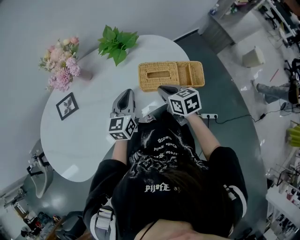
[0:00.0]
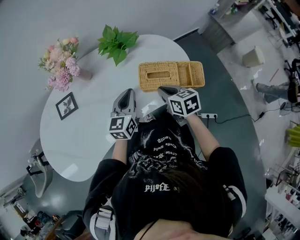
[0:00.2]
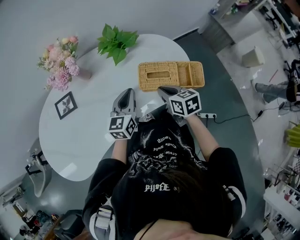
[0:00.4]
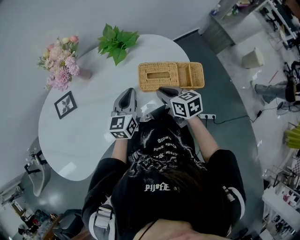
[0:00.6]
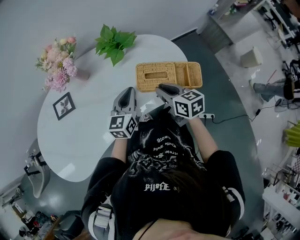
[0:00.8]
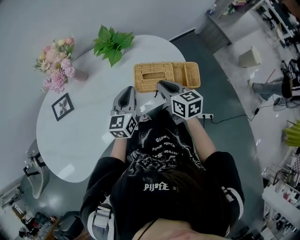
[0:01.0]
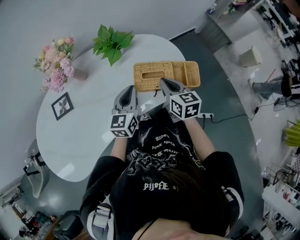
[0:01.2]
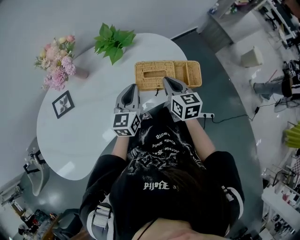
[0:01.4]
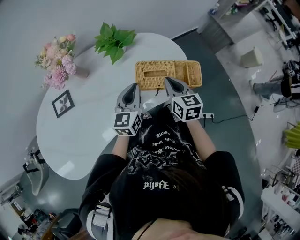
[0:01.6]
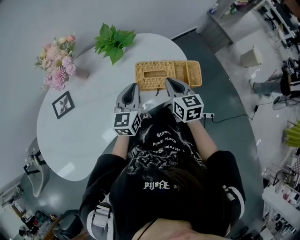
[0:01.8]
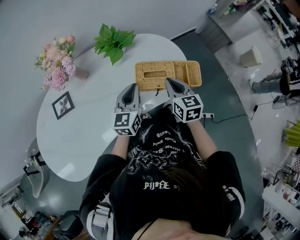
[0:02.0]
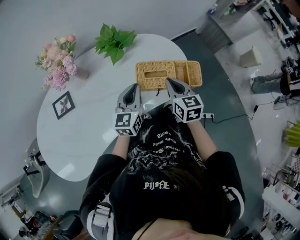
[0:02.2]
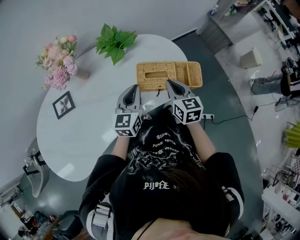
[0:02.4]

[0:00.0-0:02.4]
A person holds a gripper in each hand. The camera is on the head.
0:00.0 to 0:01.2: The right gripper shifts by some 5 cm.
0:01.2 to 0:02.4: The grippers move only a little.

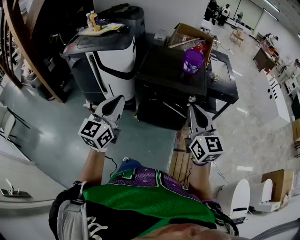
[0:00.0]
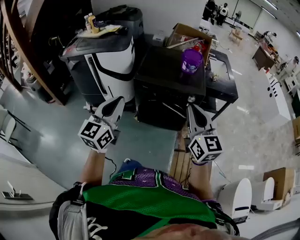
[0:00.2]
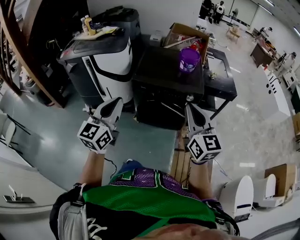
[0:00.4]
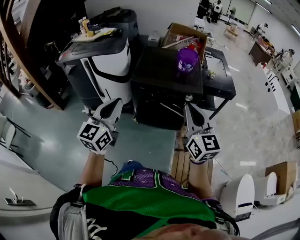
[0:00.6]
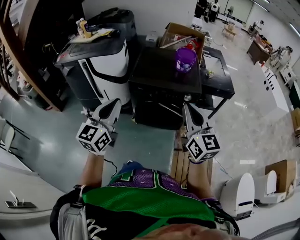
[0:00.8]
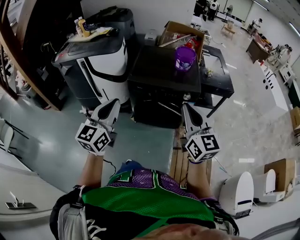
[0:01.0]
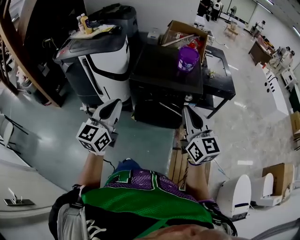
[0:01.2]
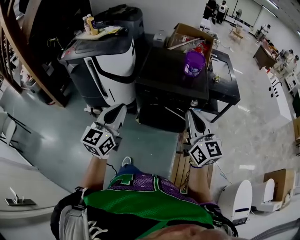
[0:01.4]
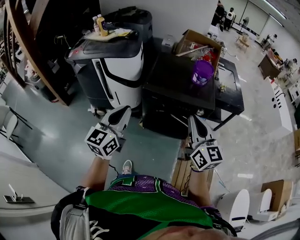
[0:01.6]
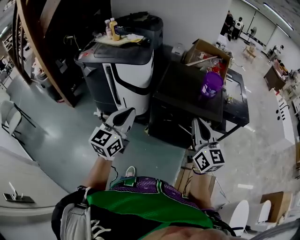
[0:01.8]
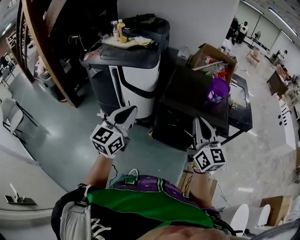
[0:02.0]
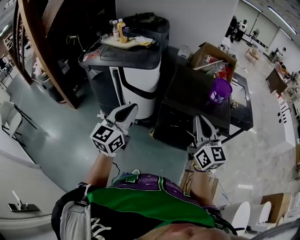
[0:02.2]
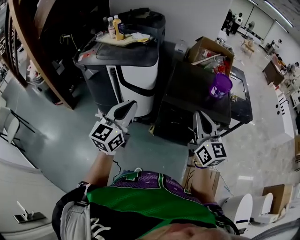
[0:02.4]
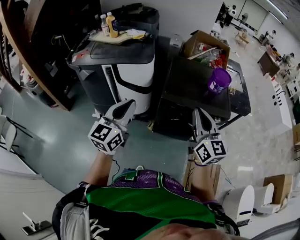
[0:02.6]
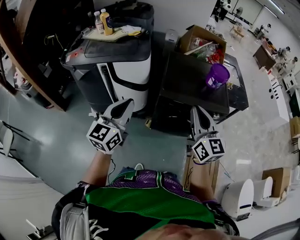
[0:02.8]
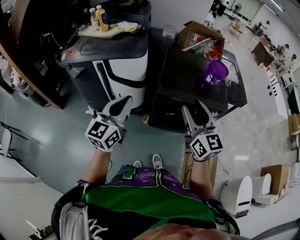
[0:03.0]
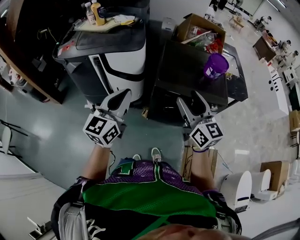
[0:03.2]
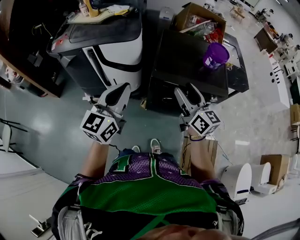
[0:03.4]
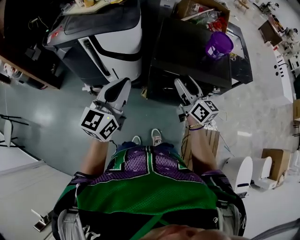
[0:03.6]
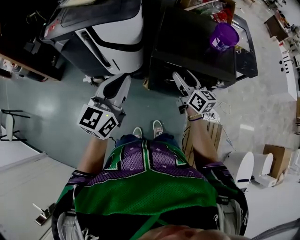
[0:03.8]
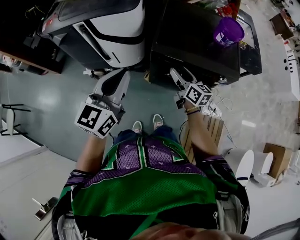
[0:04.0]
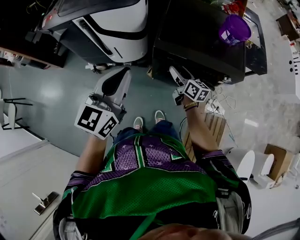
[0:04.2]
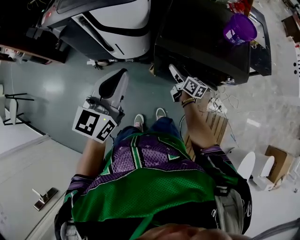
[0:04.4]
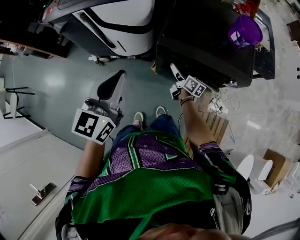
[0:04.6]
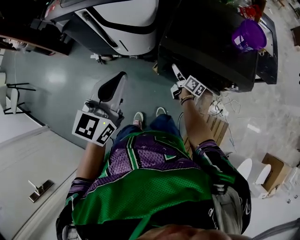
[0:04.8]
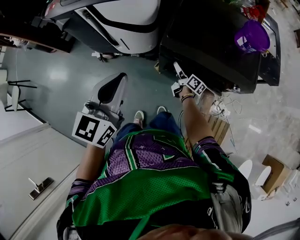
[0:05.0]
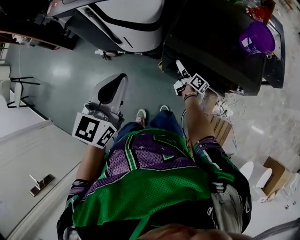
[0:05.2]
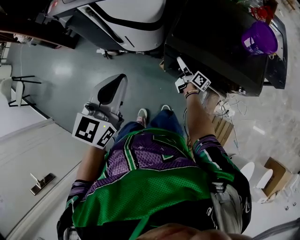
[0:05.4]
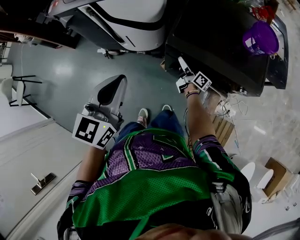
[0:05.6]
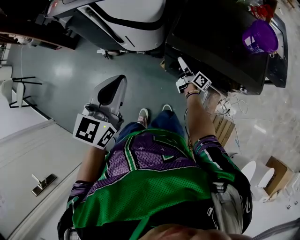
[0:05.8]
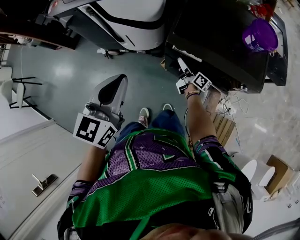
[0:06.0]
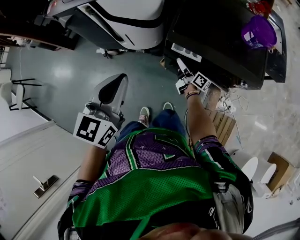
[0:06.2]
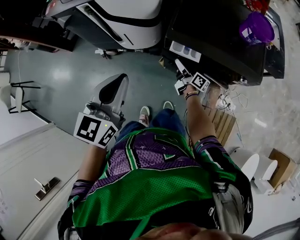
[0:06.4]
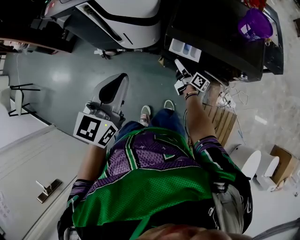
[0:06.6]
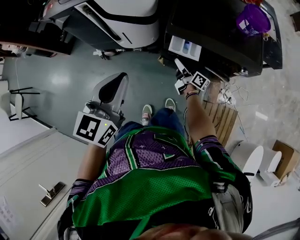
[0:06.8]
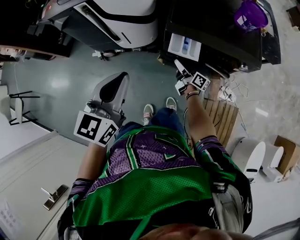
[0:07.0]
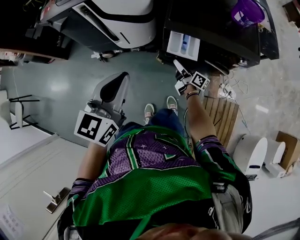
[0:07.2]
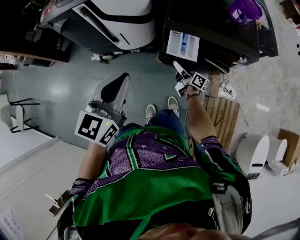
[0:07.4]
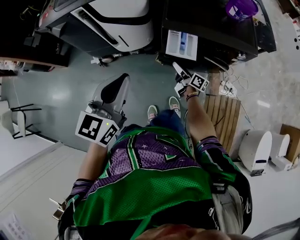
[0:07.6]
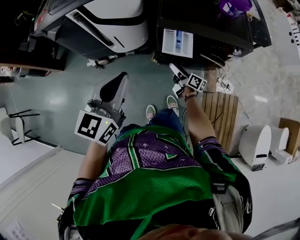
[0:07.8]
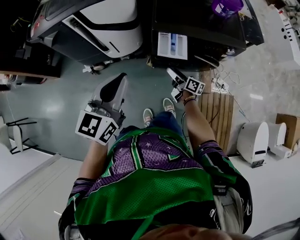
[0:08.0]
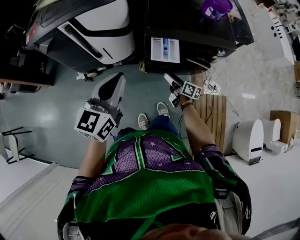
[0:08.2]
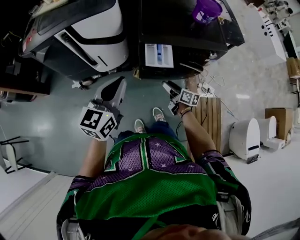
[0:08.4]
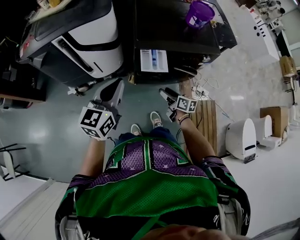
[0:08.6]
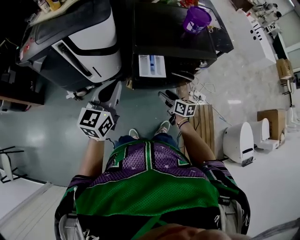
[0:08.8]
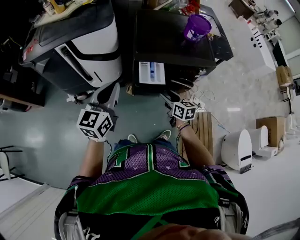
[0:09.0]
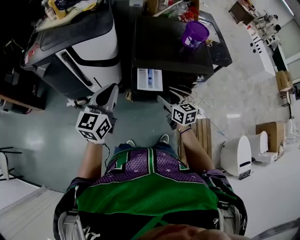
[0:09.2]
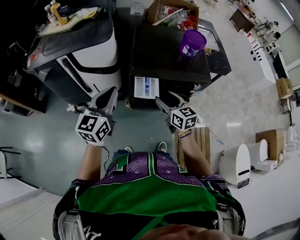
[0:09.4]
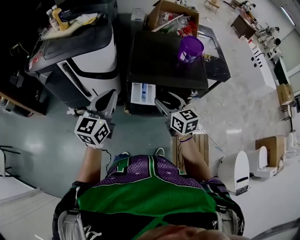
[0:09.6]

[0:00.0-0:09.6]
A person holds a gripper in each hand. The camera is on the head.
0:00.0 to 0:01.6: The right gripper moves forward and to the left, roughly 10 cm. The left gripper is displaced forward by about 5 cm.
0:01.6 to 0:03.2: The right gripper is displaced to the left and forward by about 25 cm, and opens up. Meanwhile the left gripper goes approximately 20 cm forward and to the left.
0:03.2 to 0:04.8: The right gripper heads downward and forward, covering some 50 cm, and twists about 50 degrees clockwise, seen from behind; the left gripper heads downward and to the right, covering roughly 10 cm.
0:04.8 to 0:06.4: There are only small adjustments of the grippers.
0:06.4 to 0:08.0: The right gripper travels backward by about 10 cm. The left gripper moves backward, approximately 5 cm.
0:08.0 to 0:09.6: The right gripper moves upward, roughly 30 cm, and rolls counterclockwise, seen from behind, by about 50 degrees. The left gripper goes about 10 cm forward, upward and to the right.

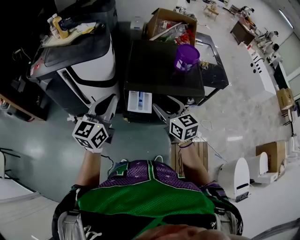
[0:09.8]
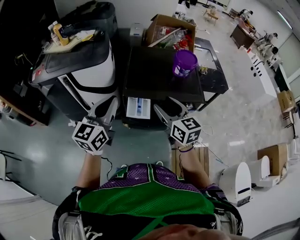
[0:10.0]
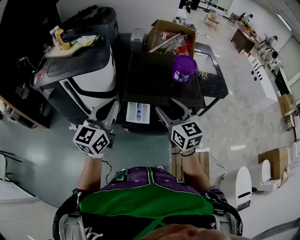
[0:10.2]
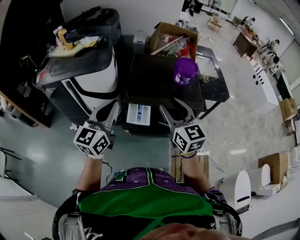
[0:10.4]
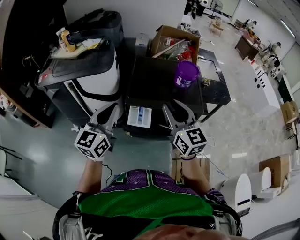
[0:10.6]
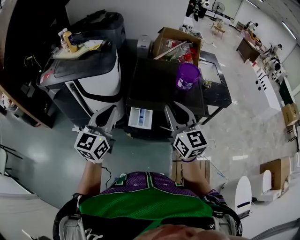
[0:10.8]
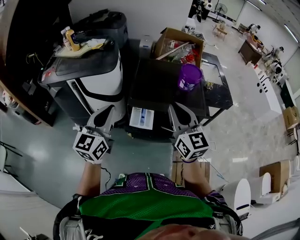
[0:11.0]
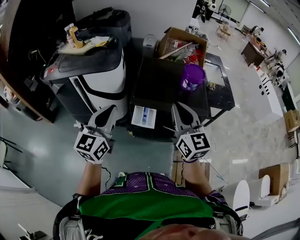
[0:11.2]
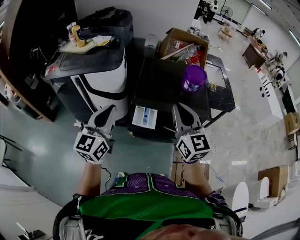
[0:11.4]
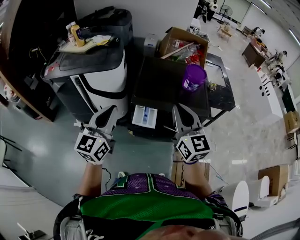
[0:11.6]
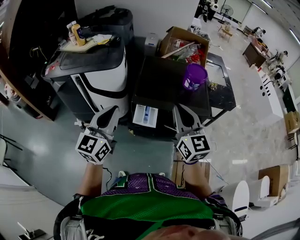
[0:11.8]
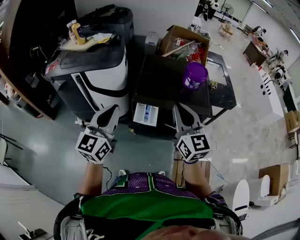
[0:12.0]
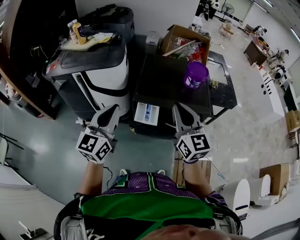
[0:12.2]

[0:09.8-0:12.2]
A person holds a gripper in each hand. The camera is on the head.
0:09.8 to 0:11.0: The right gripper goes about 15 cm upward, and closes. Meanwhile the left gripper changes place by approximately 5 cm.
0:11.0 to 0:12.2: There are only small adjustments of the grippers.

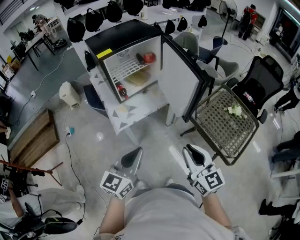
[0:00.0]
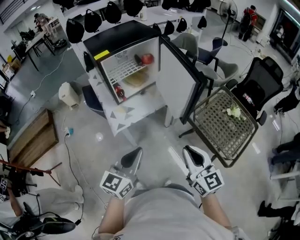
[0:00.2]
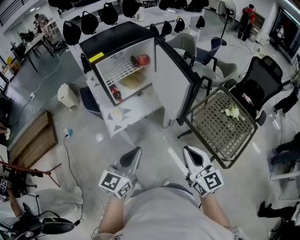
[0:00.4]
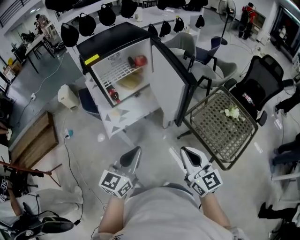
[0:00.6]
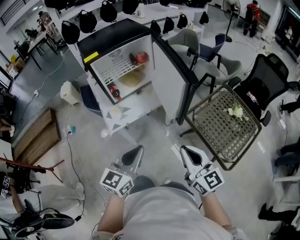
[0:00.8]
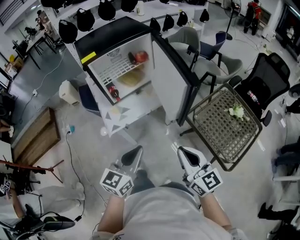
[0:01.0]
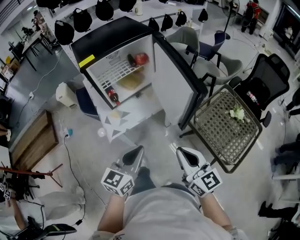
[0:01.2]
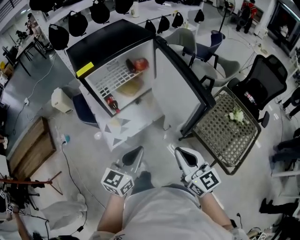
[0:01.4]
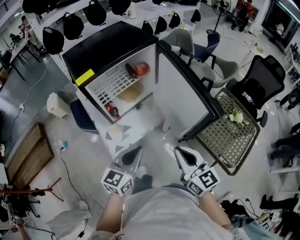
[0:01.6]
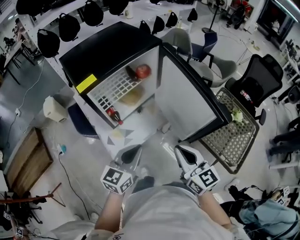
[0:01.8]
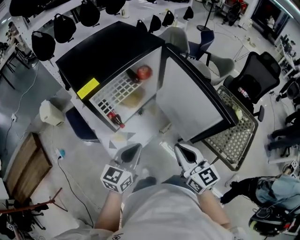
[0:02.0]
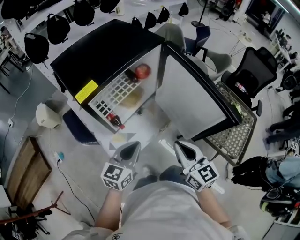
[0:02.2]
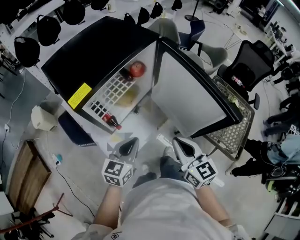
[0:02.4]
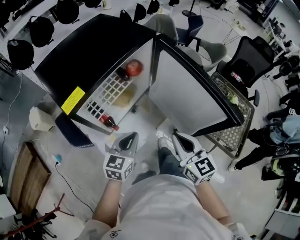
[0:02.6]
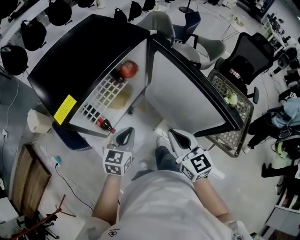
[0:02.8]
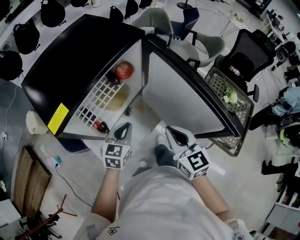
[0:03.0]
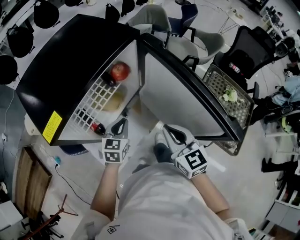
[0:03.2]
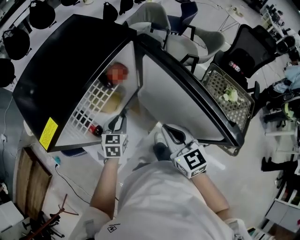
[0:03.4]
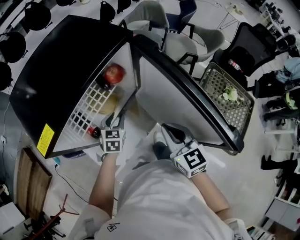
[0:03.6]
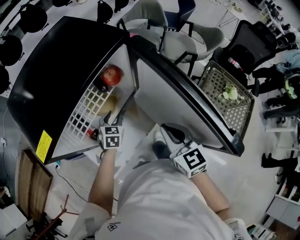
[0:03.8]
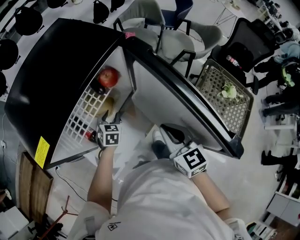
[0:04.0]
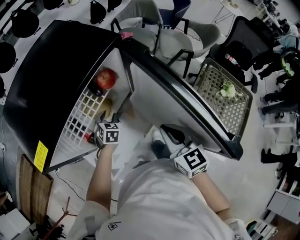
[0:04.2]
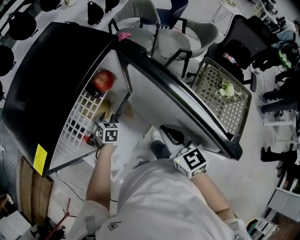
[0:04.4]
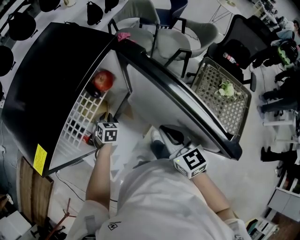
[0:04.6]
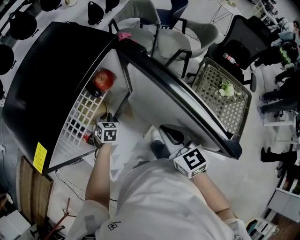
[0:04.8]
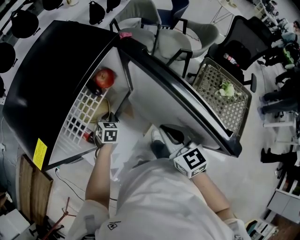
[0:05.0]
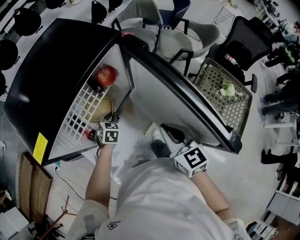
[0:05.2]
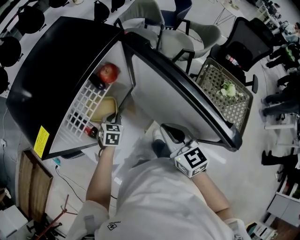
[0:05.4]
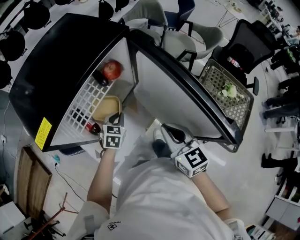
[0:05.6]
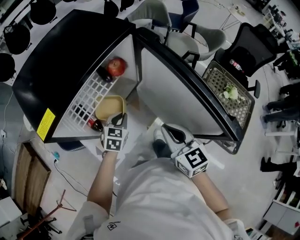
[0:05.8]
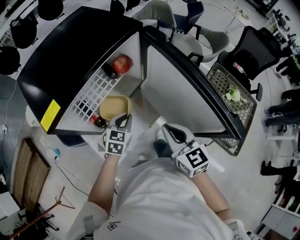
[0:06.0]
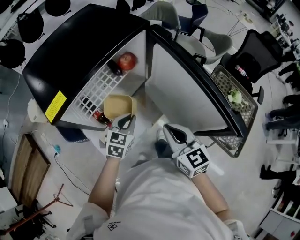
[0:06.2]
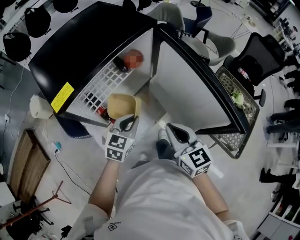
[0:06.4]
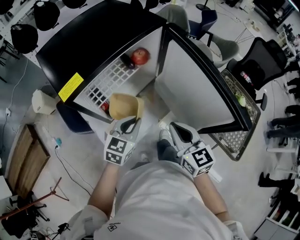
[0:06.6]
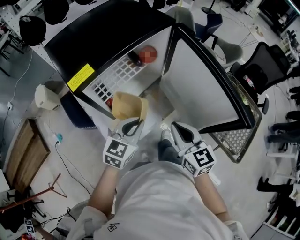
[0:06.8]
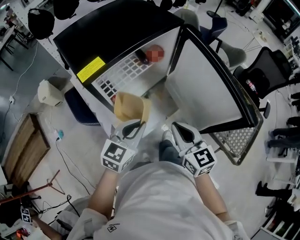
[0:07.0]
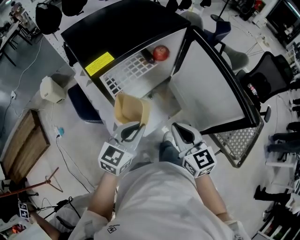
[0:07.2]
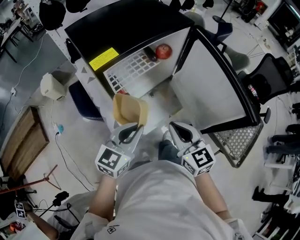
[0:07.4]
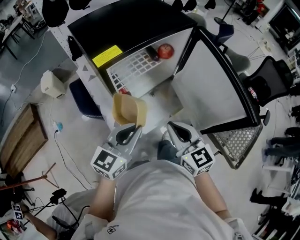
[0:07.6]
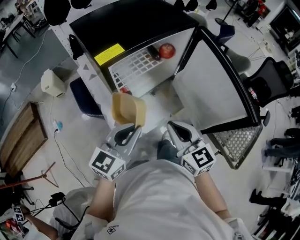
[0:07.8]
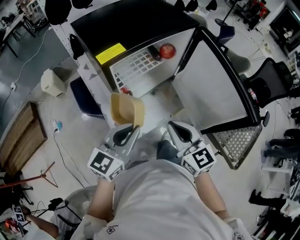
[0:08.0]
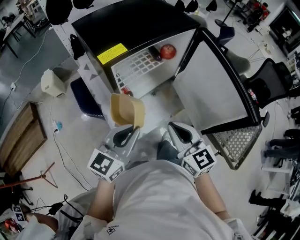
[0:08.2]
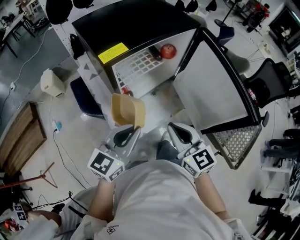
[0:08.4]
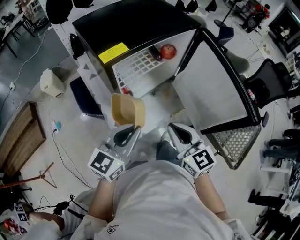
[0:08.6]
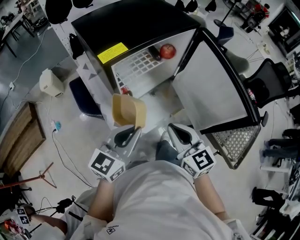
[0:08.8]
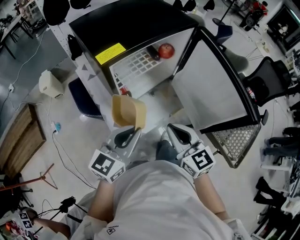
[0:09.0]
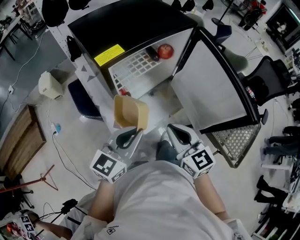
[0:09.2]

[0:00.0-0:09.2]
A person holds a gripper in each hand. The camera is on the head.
0:00.0 to 0:01.6: Both grippers travel together forward, some 20 cm.
0:01.6 to 0:03.0: The right gripper moves forward, roughly 15 cm. The left gripper goes about 25 cm forward and downward.
0:03.0 to 0:04.6: The left gripper is displaced downward and forward by about 20 cm, swivels roughly 30 degrees, and opens and closes again. Meanwhile the right gripper goes approximately 5 cm forward.
0:04.6 to 0:06.2: The right gripper shifts about 5 cm backward. The left gripper is displaced backward and upward by some 20 cm, and rotates roughly 30 degrees.
0:06.2 to 0:07.6: The right gripper shifts approximately 10 cm to the left and backward; the left gripper moves backward, upward and to the left, roughly 20 cm, and rotates roughly 30 degrees.
0:07.6 to 0:09.2: There are only small adjustments of the grippers.
